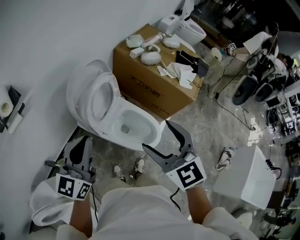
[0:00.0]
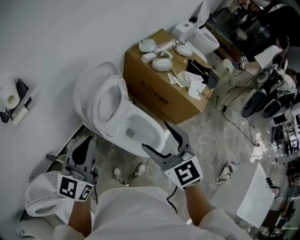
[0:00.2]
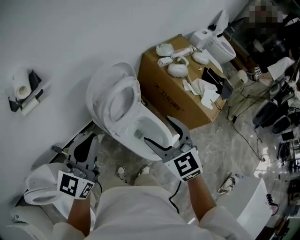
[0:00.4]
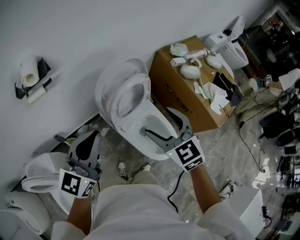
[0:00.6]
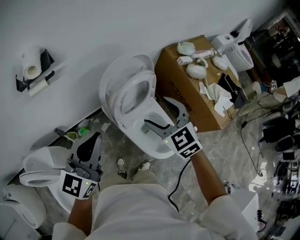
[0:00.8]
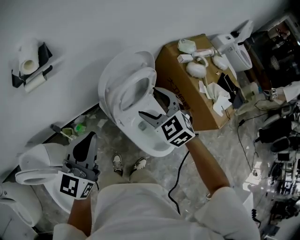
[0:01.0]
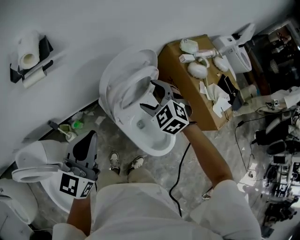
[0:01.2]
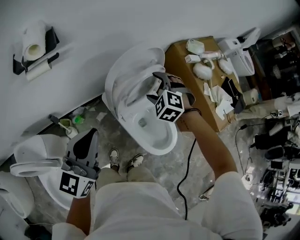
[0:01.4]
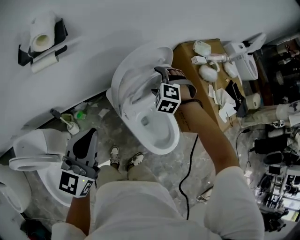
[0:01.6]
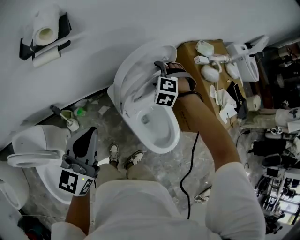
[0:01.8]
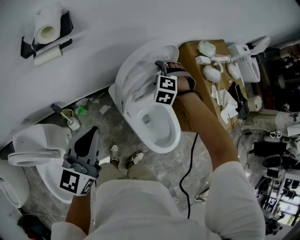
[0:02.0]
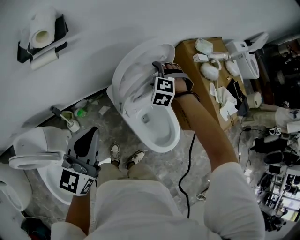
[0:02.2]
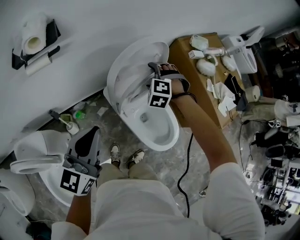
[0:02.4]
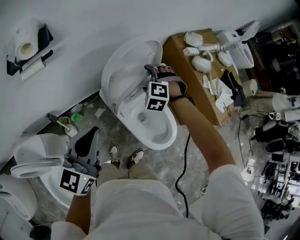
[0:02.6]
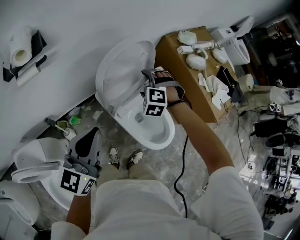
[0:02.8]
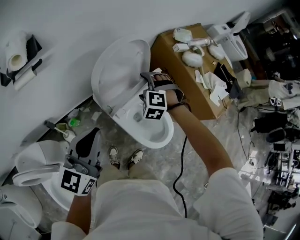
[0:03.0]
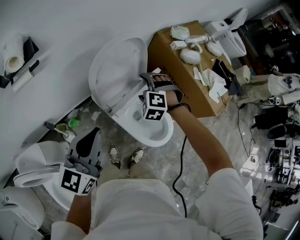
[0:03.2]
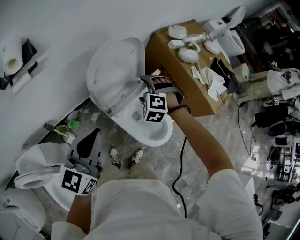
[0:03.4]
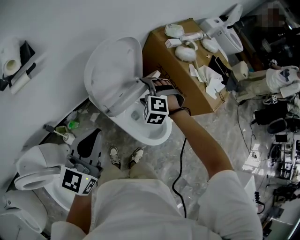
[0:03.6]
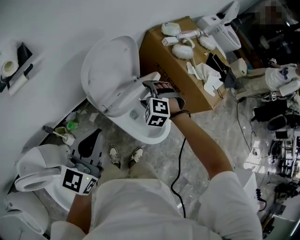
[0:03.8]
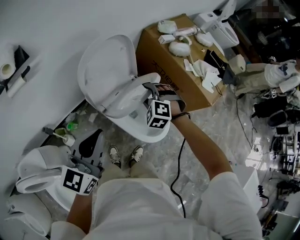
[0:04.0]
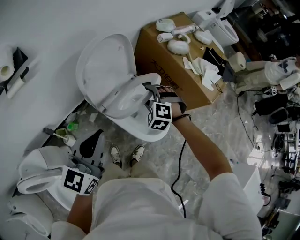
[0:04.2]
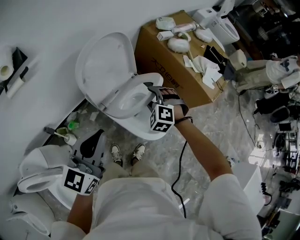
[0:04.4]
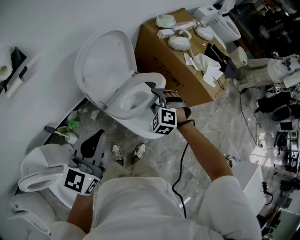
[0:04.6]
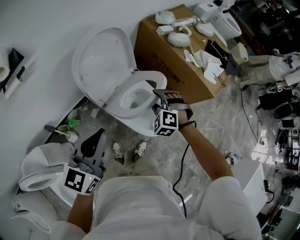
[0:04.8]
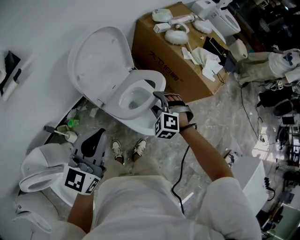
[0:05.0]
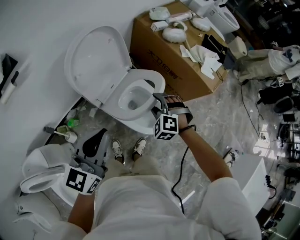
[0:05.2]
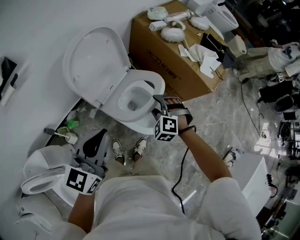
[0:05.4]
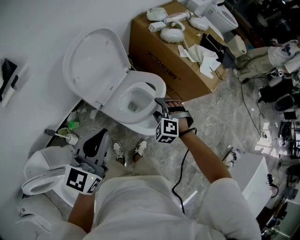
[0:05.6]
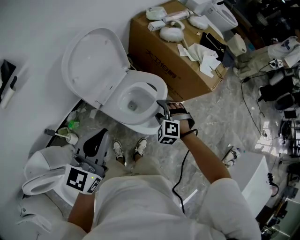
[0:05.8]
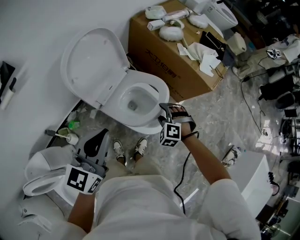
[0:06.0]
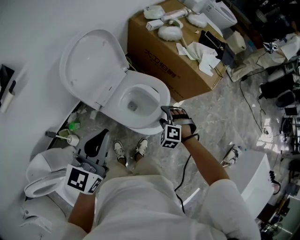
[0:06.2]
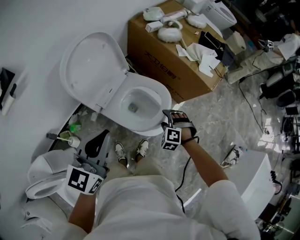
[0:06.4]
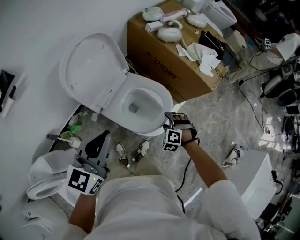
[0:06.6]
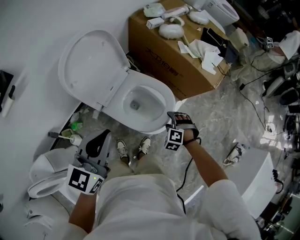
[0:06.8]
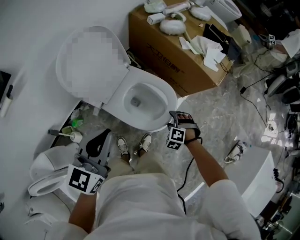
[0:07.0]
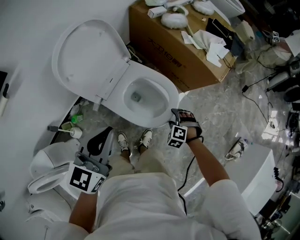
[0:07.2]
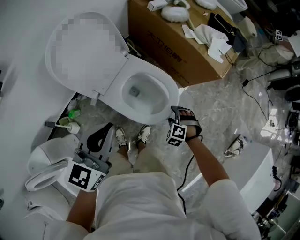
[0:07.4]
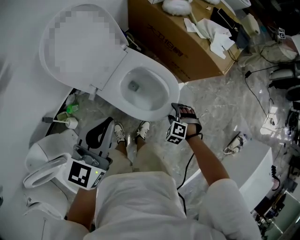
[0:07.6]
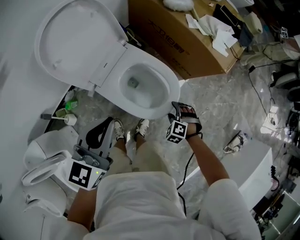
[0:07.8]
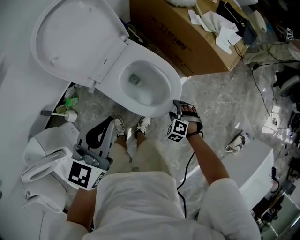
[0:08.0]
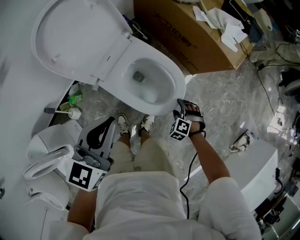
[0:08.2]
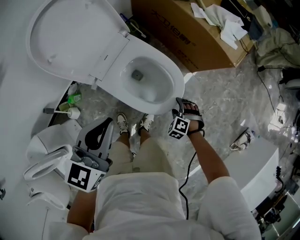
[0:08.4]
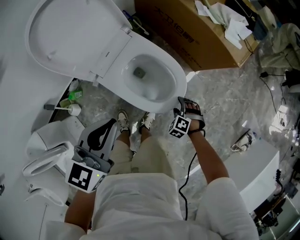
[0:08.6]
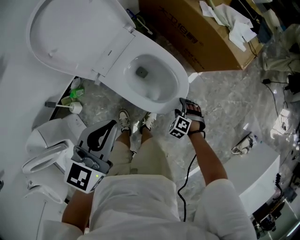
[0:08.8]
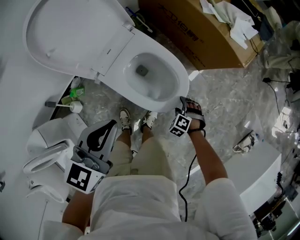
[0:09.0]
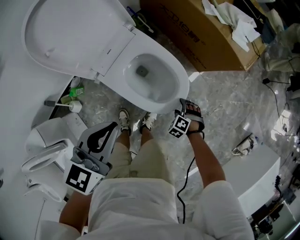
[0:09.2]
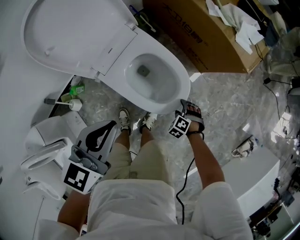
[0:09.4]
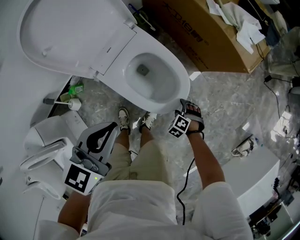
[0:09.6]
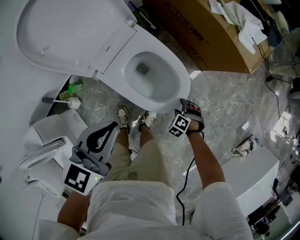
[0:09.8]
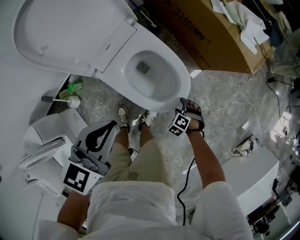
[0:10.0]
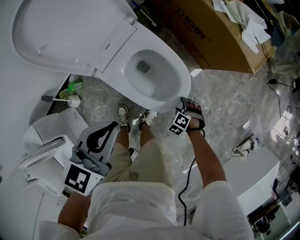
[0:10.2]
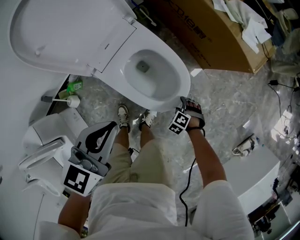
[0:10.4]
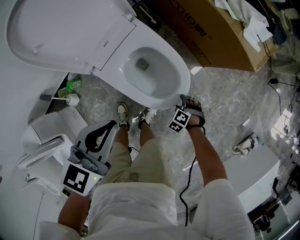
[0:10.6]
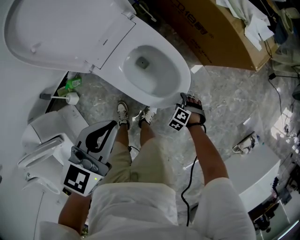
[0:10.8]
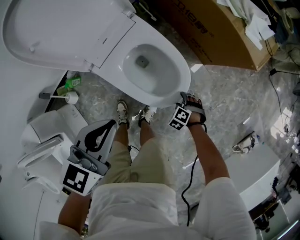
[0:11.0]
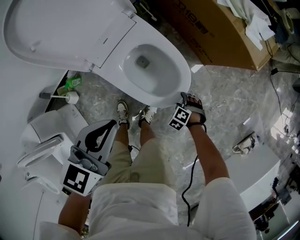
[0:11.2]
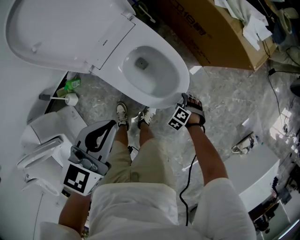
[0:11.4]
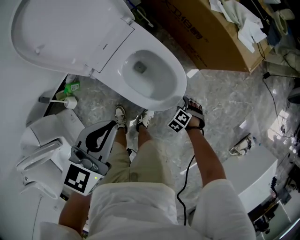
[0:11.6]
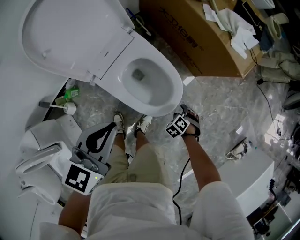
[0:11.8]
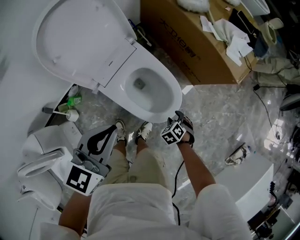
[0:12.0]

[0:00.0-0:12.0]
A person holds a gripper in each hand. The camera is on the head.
0:00.0 to 0:01.6: The left gripper heads to the left, covering some 10 cm, and swivels some 30 degrees. The right gripper is displaced forward and downward by roughly 35 cm, and twists about 60 degrees counterclockwise, seen from behind.
0:01.6 to 0:03.0: The right gripper ends up about 5 cm from where it was; the left gripper is displaced to the right by some 5 cm.
0:03.0 to 0:04.4: The right gripper heads to the right and backward, covering about 15 cm, and closes up. The left gripper heads to the right, covering about 5 cm.
0:04.4 to 0:06.0: The right gripper goes approximately 15 cm to the right, downward and backward; the left gripper heads to the right, covering roughly 5 cm.
0:06.0 to 0:07.6: The left gripper heads downward, covering roughly 5 cm. Meanwhile the right gripper goes roughly 15 cm downward and to the right.
0:07.6 to 0:09.0: The right gripper goes some 10 cm downward; the left gripper travels downward by some 5 cm.
0:09.0 to 0:10.4: The right gripper travels downward by approximately 5 cm. Meanwhile the left gripper ends up about 5 cm from where it was.
0:10.4 to 0:12.0: Both grippers travel together upward, approximately 5 cm. The right gripper changes its angle by some 30 degrees.

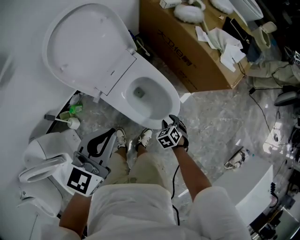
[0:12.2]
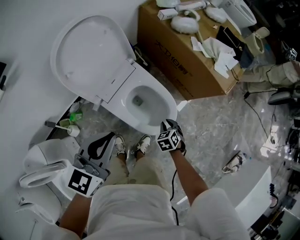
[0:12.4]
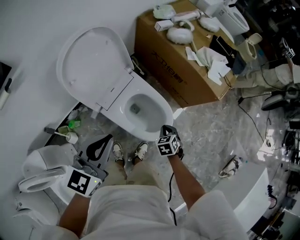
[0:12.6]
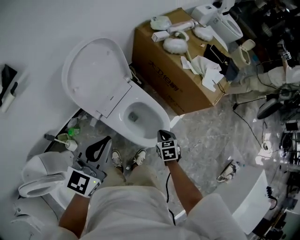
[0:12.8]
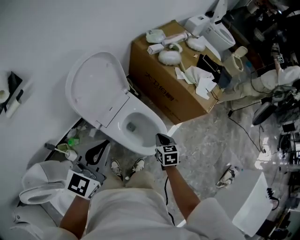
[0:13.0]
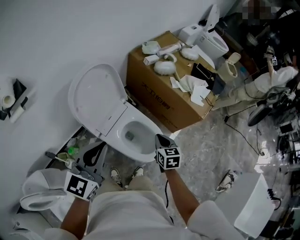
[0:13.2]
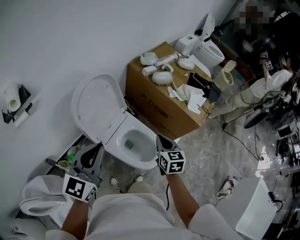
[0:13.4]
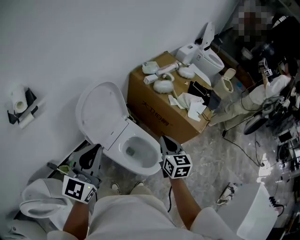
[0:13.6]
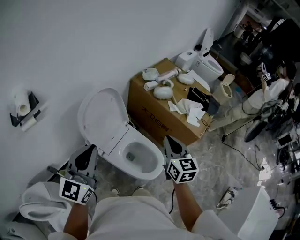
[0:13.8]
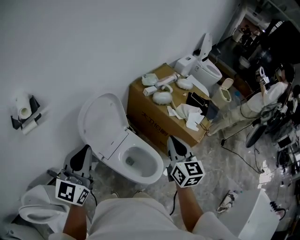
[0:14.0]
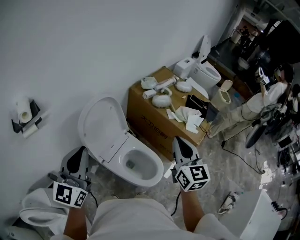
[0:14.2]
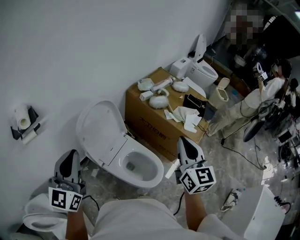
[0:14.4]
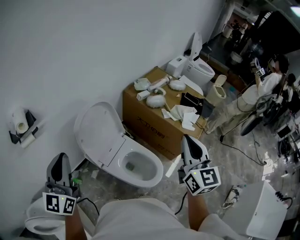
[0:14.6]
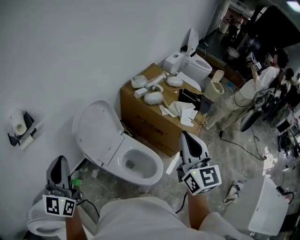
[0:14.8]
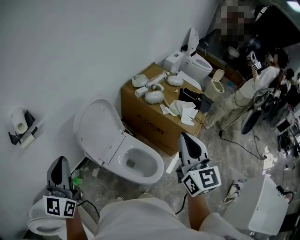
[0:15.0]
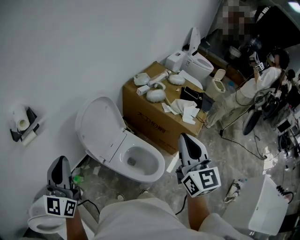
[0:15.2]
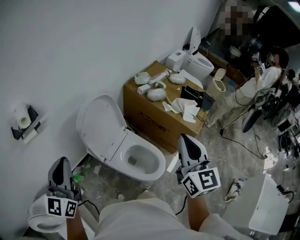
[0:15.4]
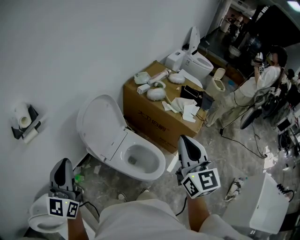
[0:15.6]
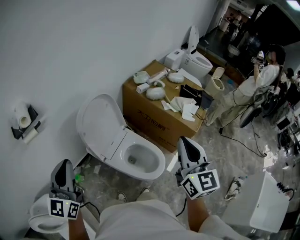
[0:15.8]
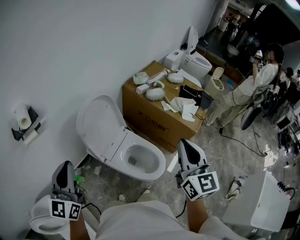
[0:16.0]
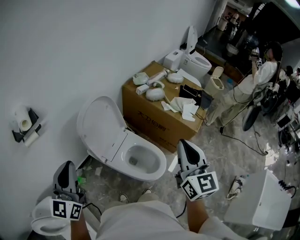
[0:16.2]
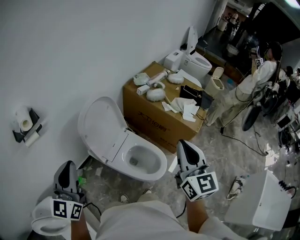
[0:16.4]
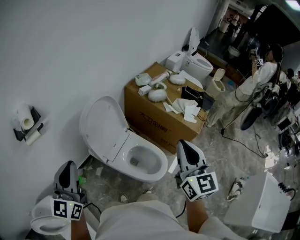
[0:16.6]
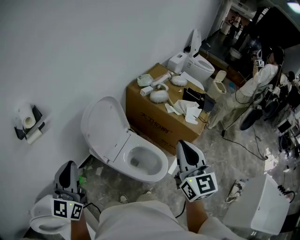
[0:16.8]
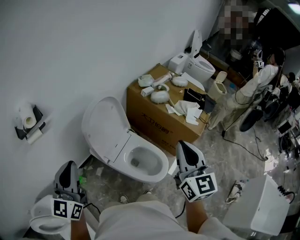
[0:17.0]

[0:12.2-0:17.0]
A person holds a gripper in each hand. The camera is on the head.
0:12.2 to 0:13.8: The left gripper moves upward and to the left, some 25 cm, and rotates some 30 degrees; the right gripper shifts approximately 50 cm upward, tilts its fingers approximately 50 degrees upward, and closes.
0:13.8 to 0:15.4: The left gripper moves to the left, approximately 10 cm. Meanwhile the right gripper heads upward and backward, covering approximately 15 cm.
0:15.4 to 0:17.0: The grippers stay close to where they were, moving slightly.

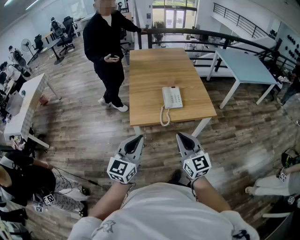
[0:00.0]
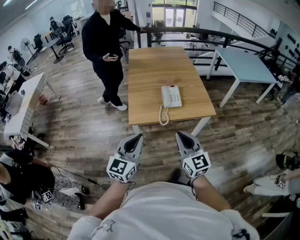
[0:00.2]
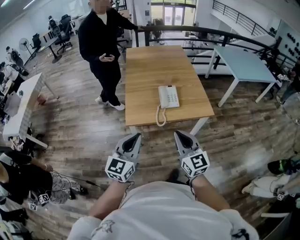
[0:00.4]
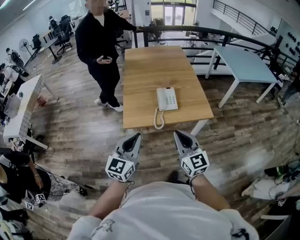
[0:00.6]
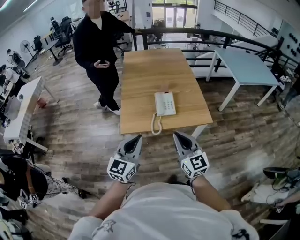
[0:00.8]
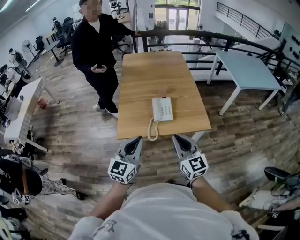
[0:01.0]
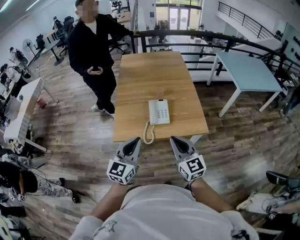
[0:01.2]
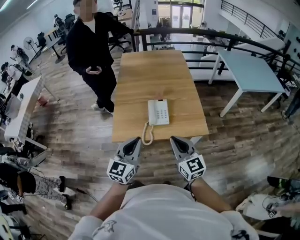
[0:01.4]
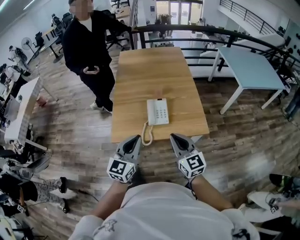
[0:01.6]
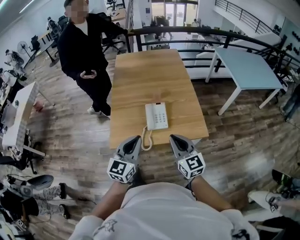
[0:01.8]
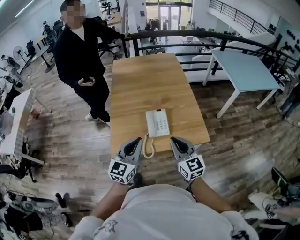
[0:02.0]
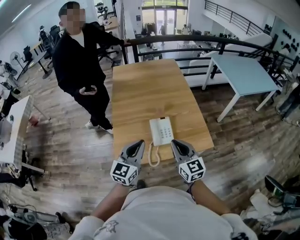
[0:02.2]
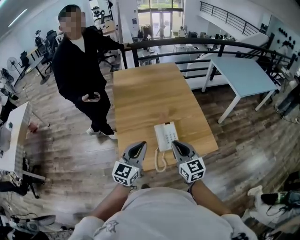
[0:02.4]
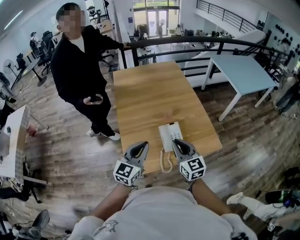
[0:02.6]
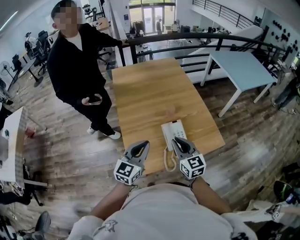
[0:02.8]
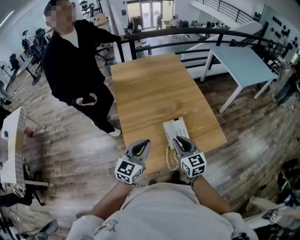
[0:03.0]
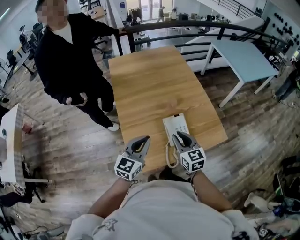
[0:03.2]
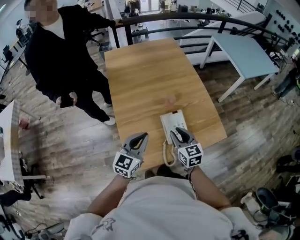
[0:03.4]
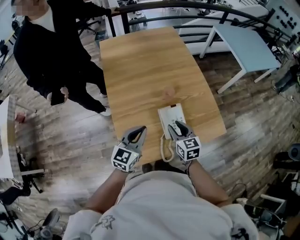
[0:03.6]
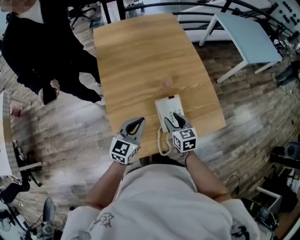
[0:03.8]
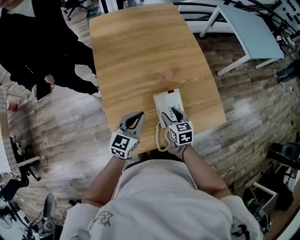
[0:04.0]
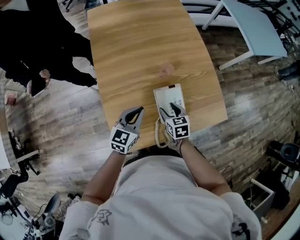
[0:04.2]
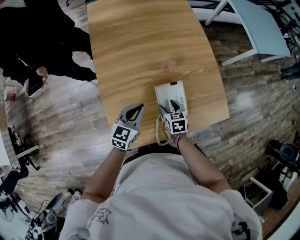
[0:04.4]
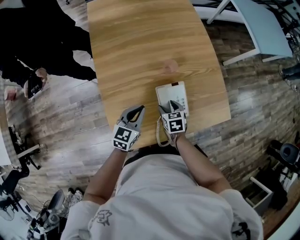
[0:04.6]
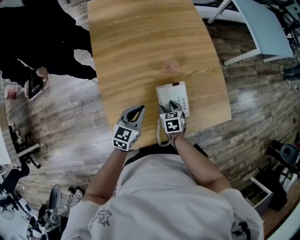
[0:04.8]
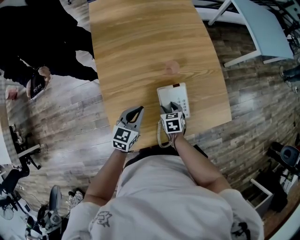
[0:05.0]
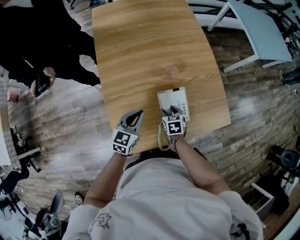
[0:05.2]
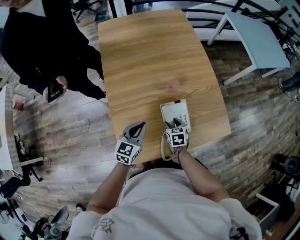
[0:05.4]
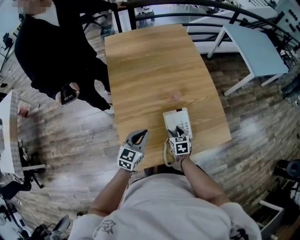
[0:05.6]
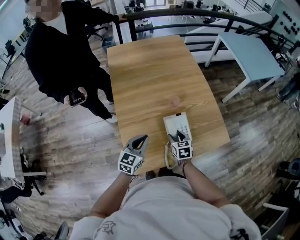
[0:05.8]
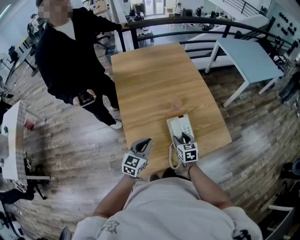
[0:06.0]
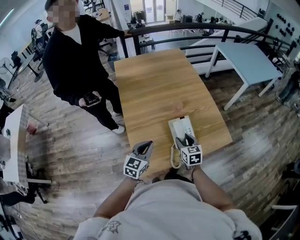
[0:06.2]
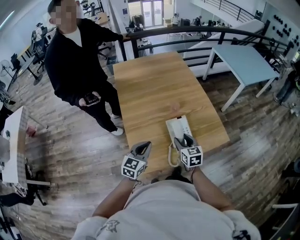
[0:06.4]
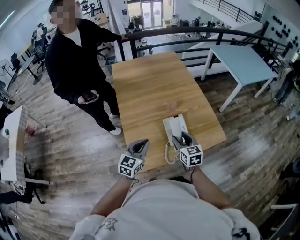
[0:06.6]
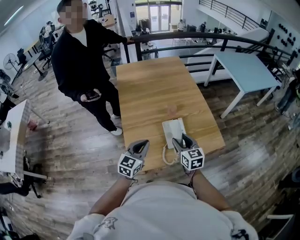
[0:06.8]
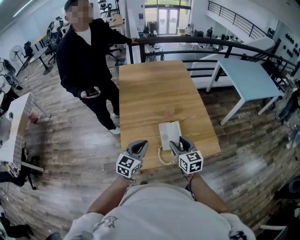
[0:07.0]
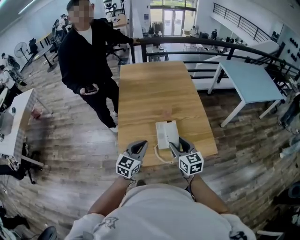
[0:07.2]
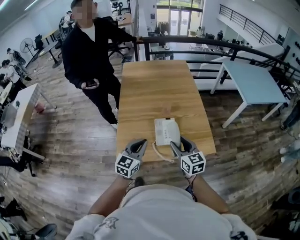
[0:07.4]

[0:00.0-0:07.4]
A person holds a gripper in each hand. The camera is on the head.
0:00.0 to 0:01.4: The two grippers go approximately 25 cm forward and to the right.
0:01.4 to 0:03.0: Both grippers travel together forward and to the left, some 25 cm. The right gripper rotates approximately 20 degrees.
0:03.0 to 0:04.4: Both grippers travel together downward and forward, some 25 cm. The right gripper tips its fingers downward by about 30 degrees, and opens.
0:04.4 to 0:06.0: The left gripper is displaced backward and upward by roughly 10 cm. Meanwhile the right gripper goes roughly 10 cm upward.
0:06.0 to 0:07.4: The left gripper moves to the right, backward and upward, some 20 cm. Meanwhile the right gripper heads upward, backward and to the right, covering about 20 cm, and changes its angle by some 30 degrees.
